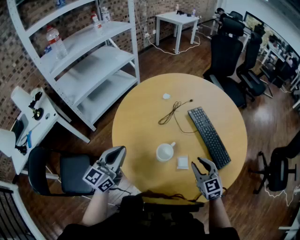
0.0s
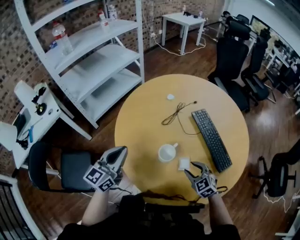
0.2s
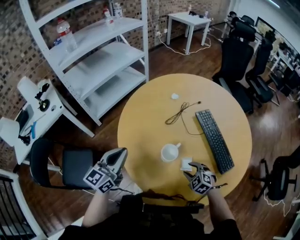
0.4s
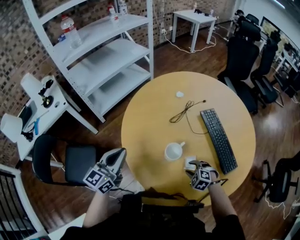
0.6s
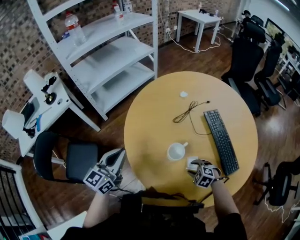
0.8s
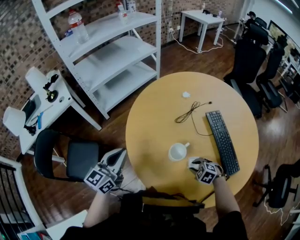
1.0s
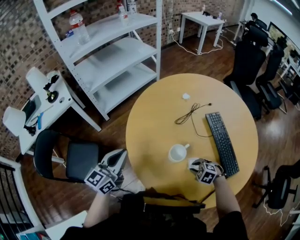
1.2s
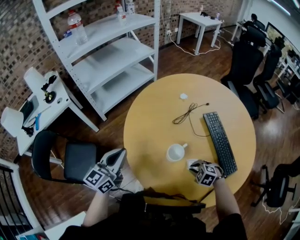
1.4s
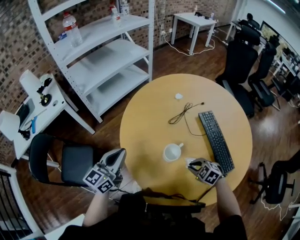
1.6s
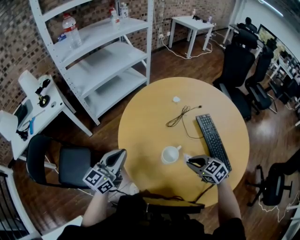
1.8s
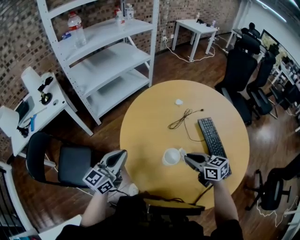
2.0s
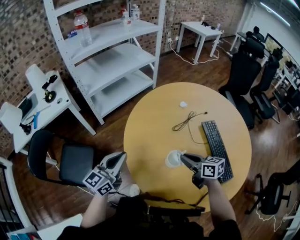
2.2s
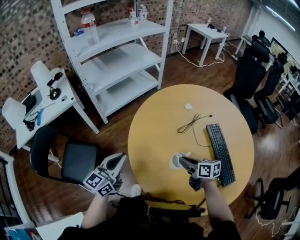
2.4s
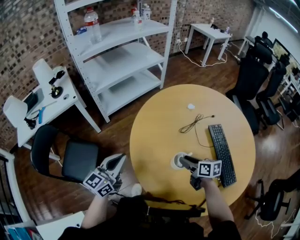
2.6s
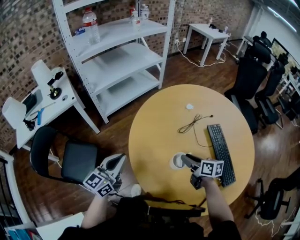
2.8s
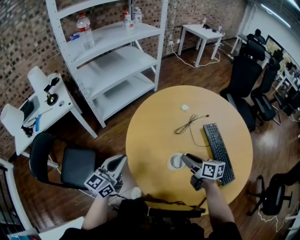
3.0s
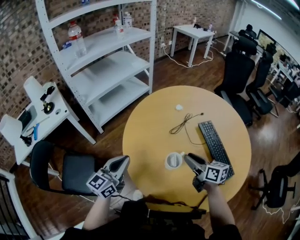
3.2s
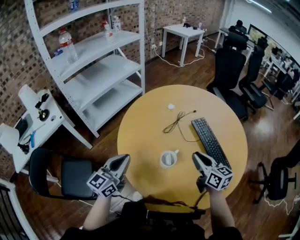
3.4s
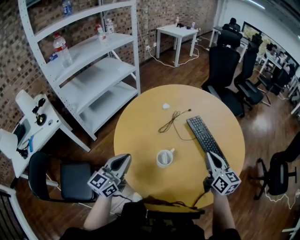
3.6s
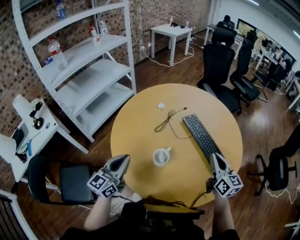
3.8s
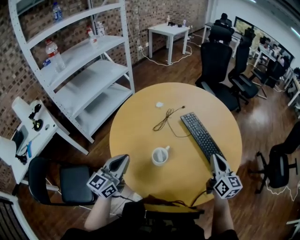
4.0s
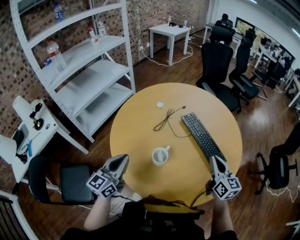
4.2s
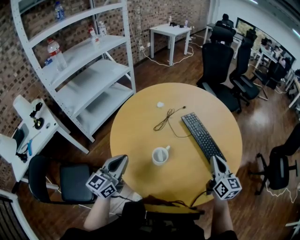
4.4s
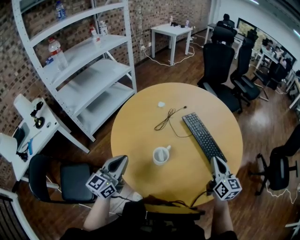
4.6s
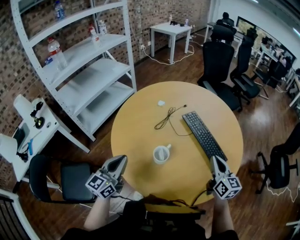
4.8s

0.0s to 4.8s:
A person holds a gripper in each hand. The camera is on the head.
0.0s to 1.6s: The left gripper moves some 5 cm, while the right gripper moves downward, some 10 cm, and points its fingers some 40 degrees further downward.
1.6s to 3.2s: The right gripper moves up and down over some 15 cm, changing direction 2 times, tilts its fingers roughly 40 degrees upward, and opens its fingers.
3.2s to 4.8s: The left gripper goes about 5 cm to the right. The right gripper travels to the right by some 20 cm, turns by approximately 40 degrees, and closes.

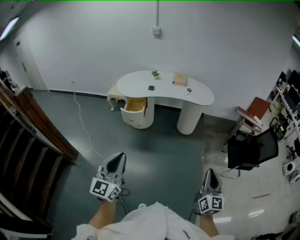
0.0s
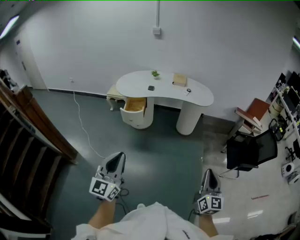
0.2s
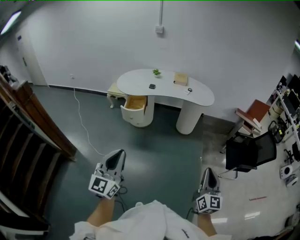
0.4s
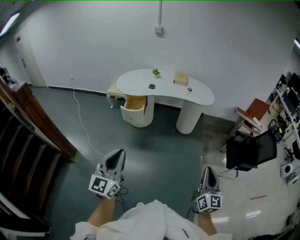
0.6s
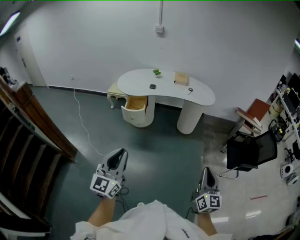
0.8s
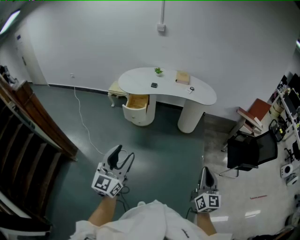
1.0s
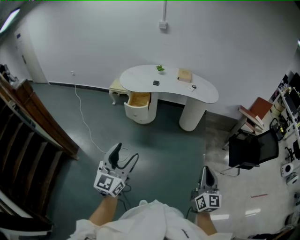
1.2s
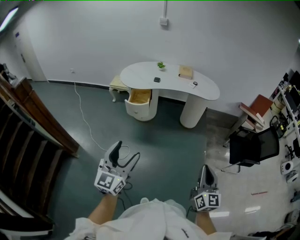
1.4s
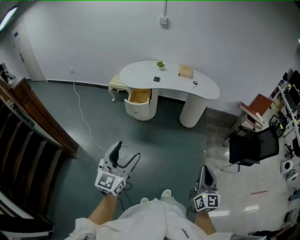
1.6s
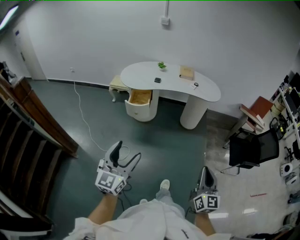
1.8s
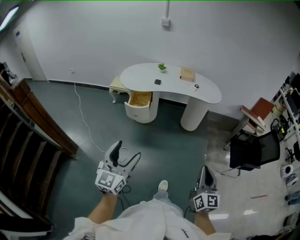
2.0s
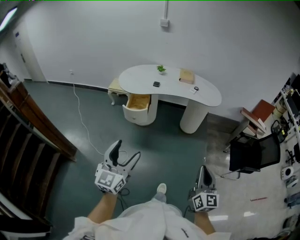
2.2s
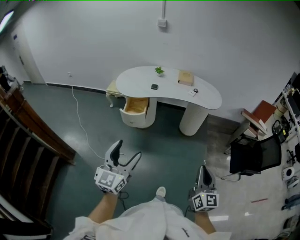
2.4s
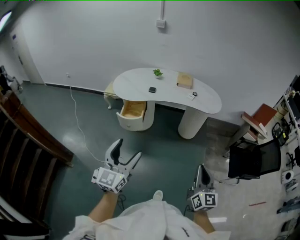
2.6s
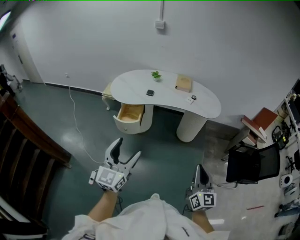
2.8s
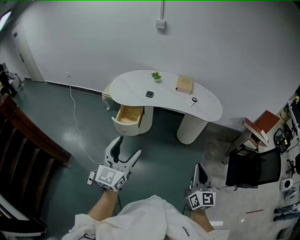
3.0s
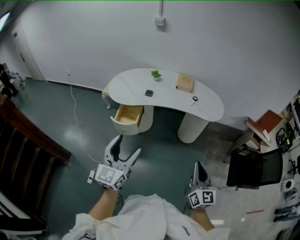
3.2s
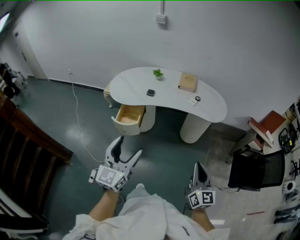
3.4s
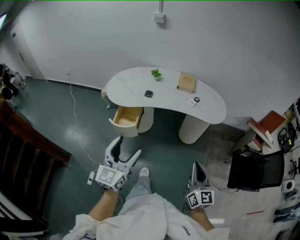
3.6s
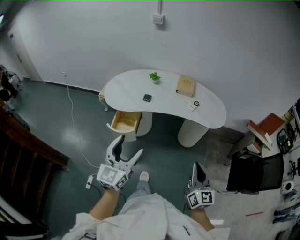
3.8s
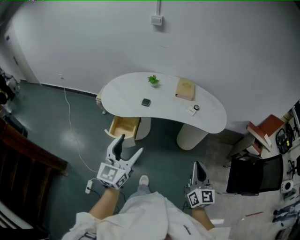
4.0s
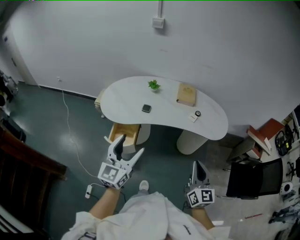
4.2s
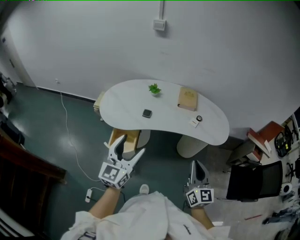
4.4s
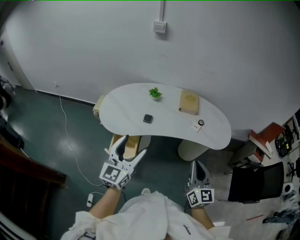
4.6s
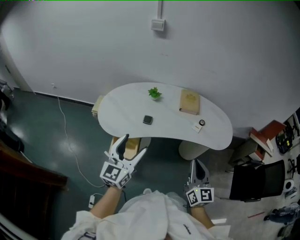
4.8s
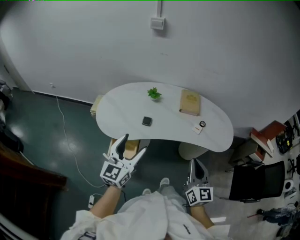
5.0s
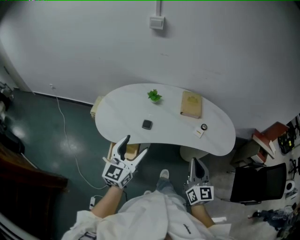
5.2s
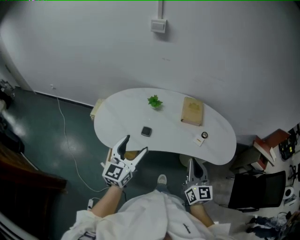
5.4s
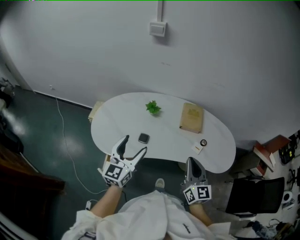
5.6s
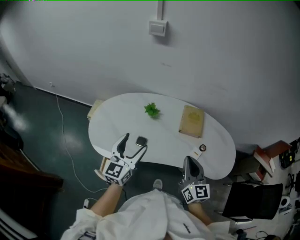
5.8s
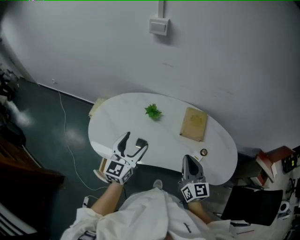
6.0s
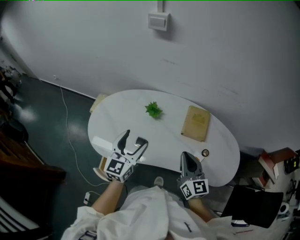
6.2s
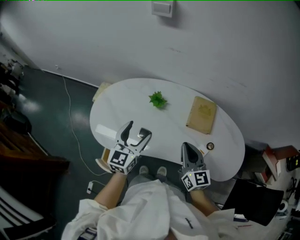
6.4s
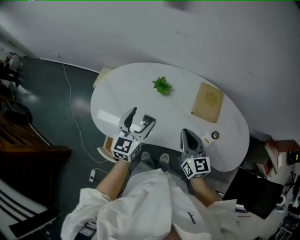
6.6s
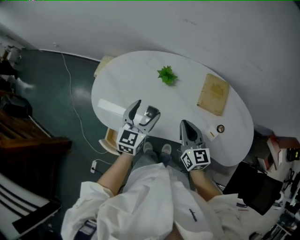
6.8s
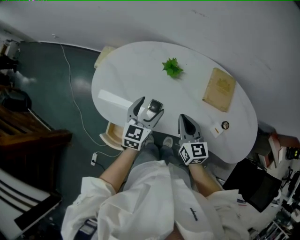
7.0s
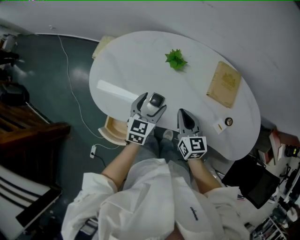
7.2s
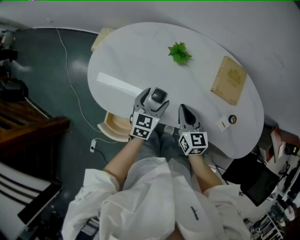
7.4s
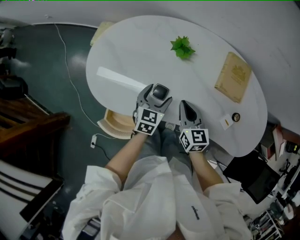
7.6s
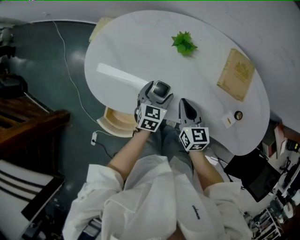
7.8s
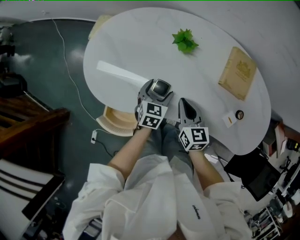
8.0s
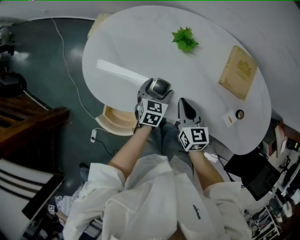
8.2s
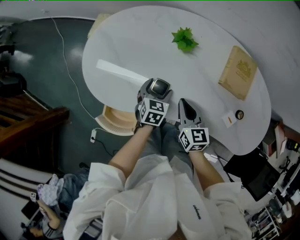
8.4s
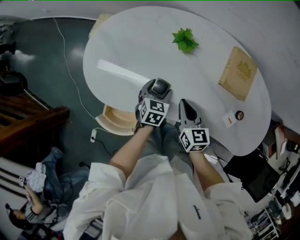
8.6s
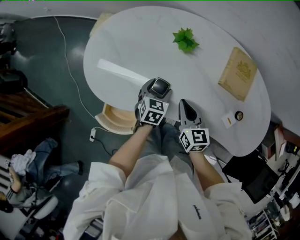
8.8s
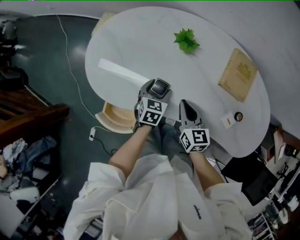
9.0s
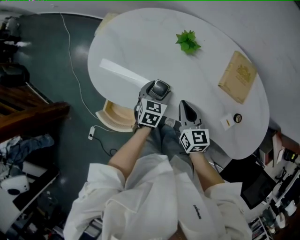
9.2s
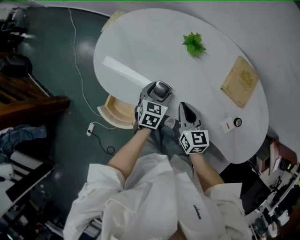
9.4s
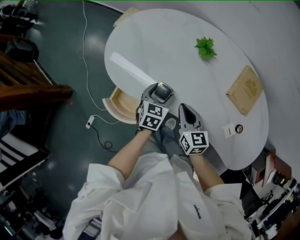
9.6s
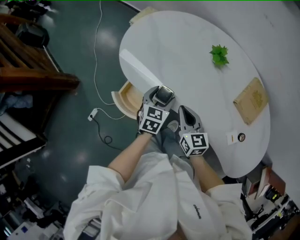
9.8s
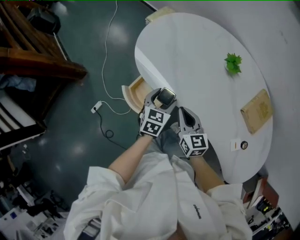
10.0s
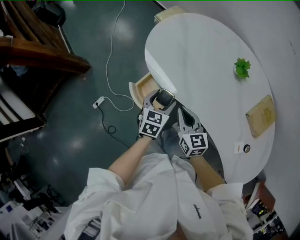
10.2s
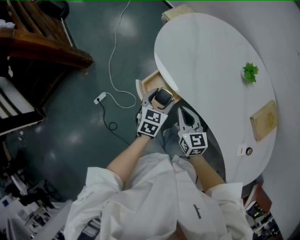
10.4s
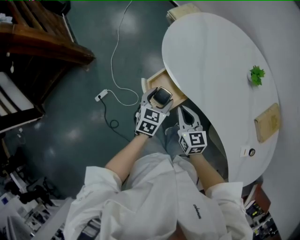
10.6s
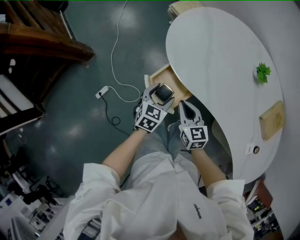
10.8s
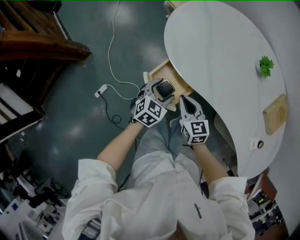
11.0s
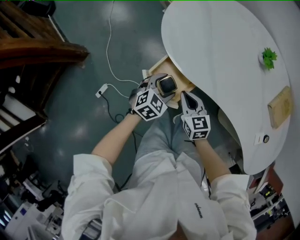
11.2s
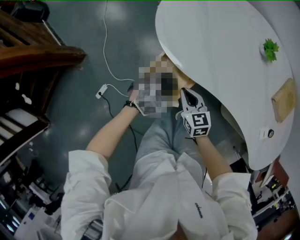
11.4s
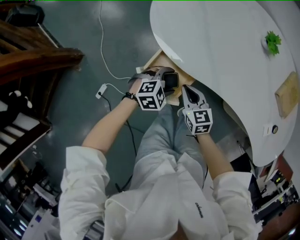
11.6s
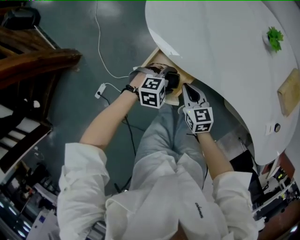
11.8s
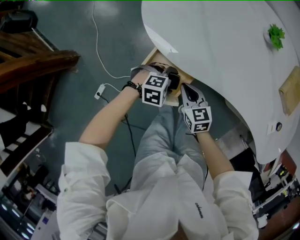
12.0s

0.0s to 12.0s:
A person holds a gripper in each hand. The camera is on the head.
0.0s to 1.6s: The right gripper shifts approximately 10 cm to the left, while the left gripper ends up about 5 cm from where it was, and opens up.
1.6s to 3.0s: Both grippers travel together forward, some 30 cm.
3.0s to 4.4s: The two grippers go approximately 30 cm forward.
4.4s to 6.0s: Both grippers move forward, approximately 35 cm.
6.0s to 7.6s: The left gripper travels downward by some 30 cm, and tilts its fingers about 30 degrees downward, while the right gripper shifts about 30 cm downward, to the left and forward, and rotates some 30 degrees.
7.6s to 9.0s: The left gripper travels downward by roughly 5 cm.
9.0s to 10.4s: The right gripper ends up about 25 cm from where it was, and changes its angle by approximately 30 degrees, while the left gripper ends up about 25 cm from where it was, and turns by about 30 degrees.
10.4s to 12.0s: Both grippers travel together downward, approximately 20 cm. The left gripper rotates approximately 90 degrees.

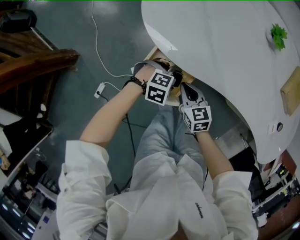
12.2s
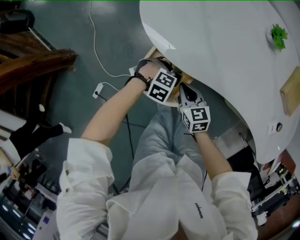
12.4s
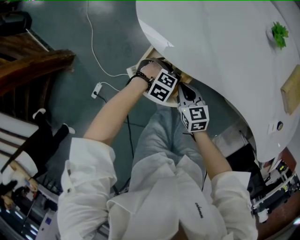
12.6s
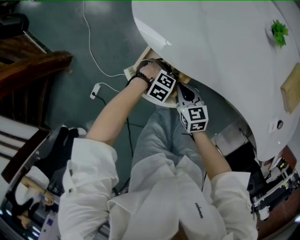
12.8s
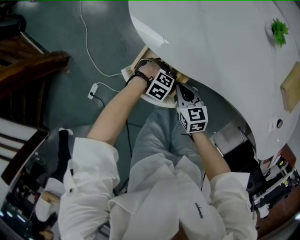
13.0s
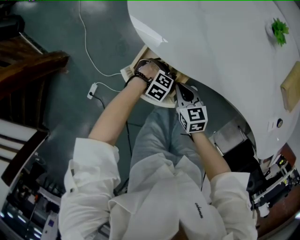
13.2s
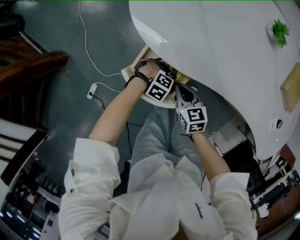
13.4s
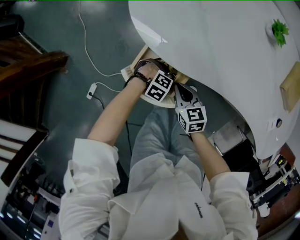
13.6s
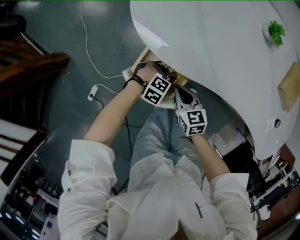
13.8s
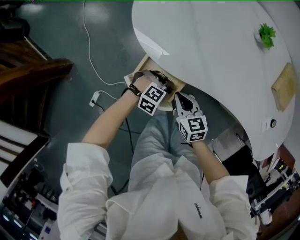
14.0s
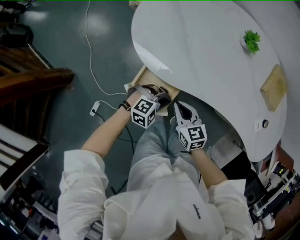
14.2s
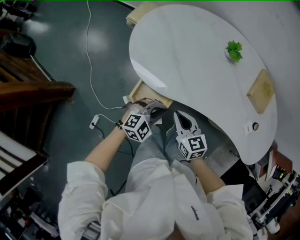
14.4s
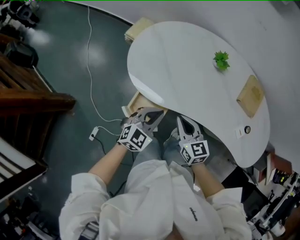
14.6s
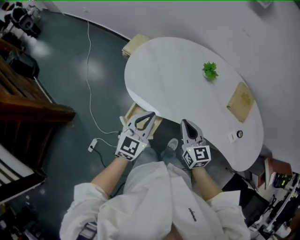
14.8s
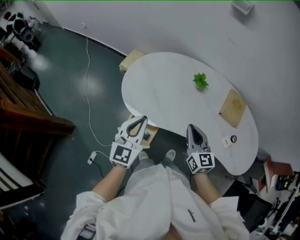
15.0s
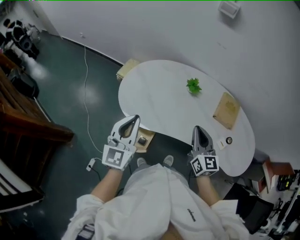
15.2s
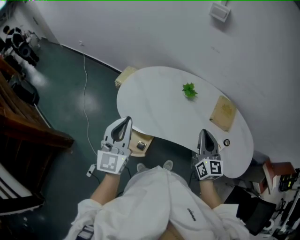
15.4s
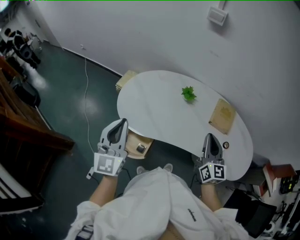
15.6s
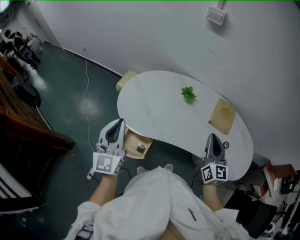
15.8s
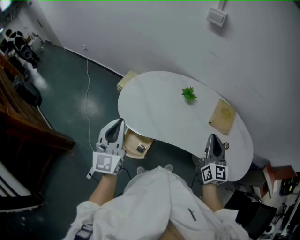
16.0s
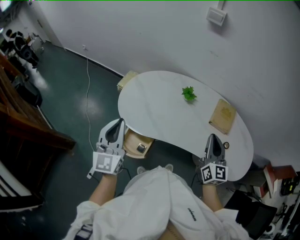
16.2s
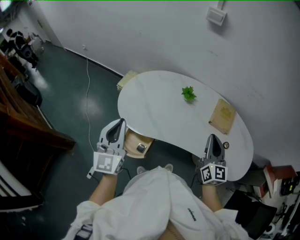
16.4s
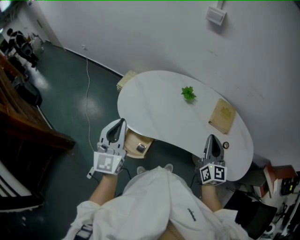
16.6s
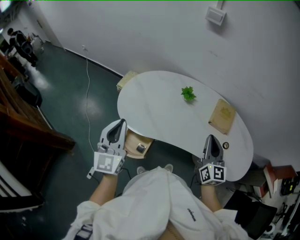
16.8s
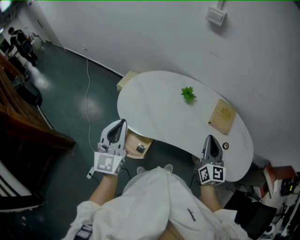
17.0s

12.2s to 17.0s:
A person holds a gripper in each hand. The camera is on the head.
12.2s to 13.8s: The left gripper moves downward, approximately 5 cm.
13.8s to 15.4s: Both grippers travel together upward, some 50 cm. The left gripper tips its fingers upward by about 70 degrees, and closes its fingers. Meanwhile the right gripper angles its fingers upward, by about 40 degrees.
15.4s to 17.0s: The right gripper heads to the right, covering roughly 5 cm.

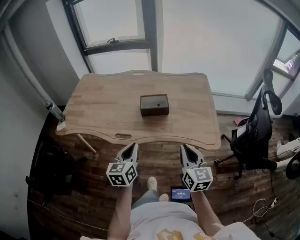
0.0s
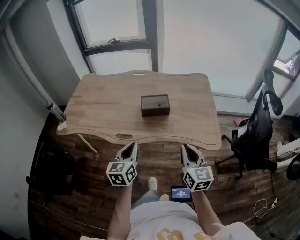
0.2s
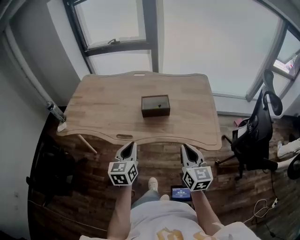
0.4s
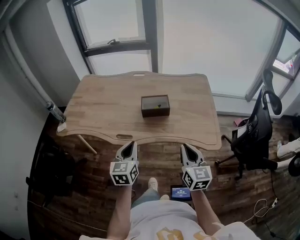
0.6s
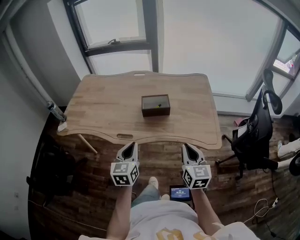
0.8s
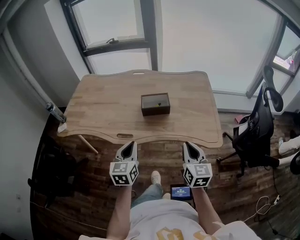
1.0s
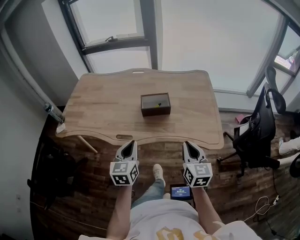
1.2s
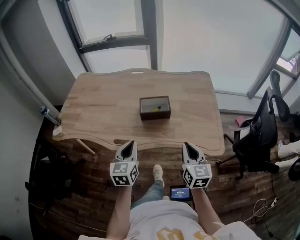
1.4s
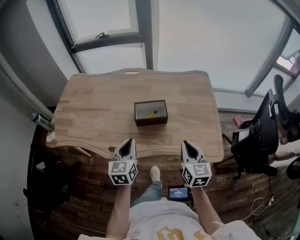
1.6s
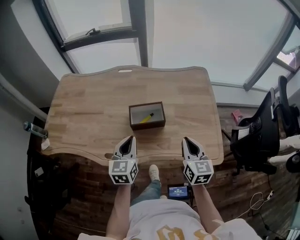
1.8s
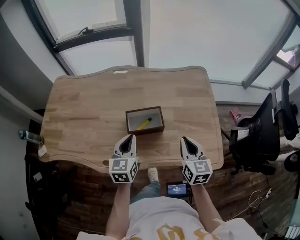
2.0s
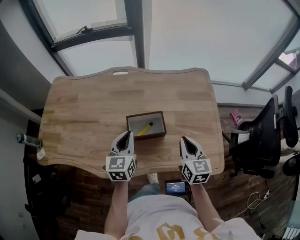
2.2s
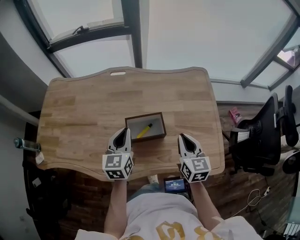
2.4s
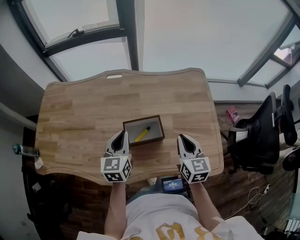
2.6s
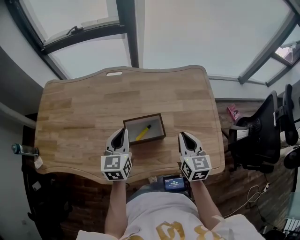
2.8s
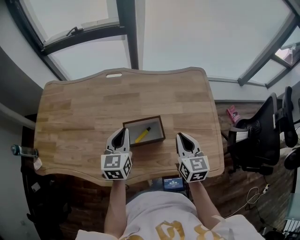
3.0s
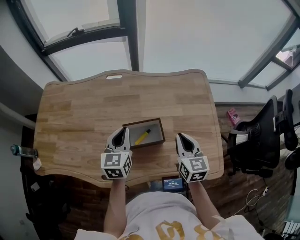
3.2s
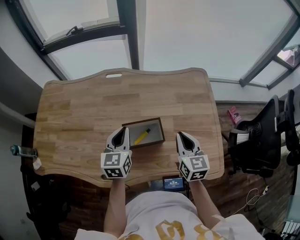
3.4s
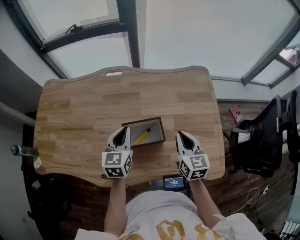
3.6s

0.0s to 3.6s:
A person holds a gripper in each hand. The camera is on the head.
0.0s to 1.8s: The two grippers go some 20 cm forward.
1.8s to 3.6s: The two grippers go about 15 cm forward.
